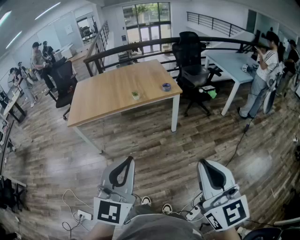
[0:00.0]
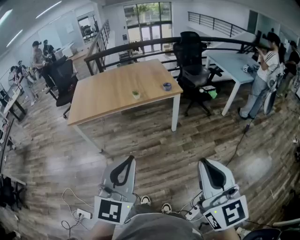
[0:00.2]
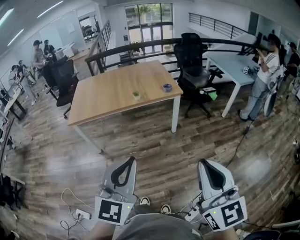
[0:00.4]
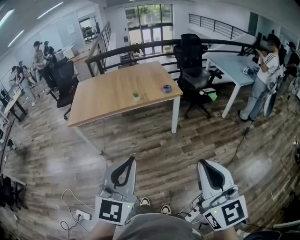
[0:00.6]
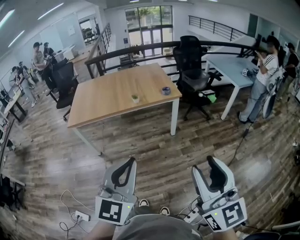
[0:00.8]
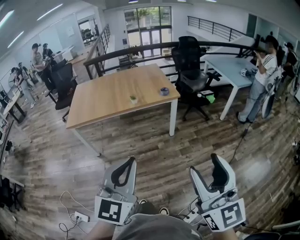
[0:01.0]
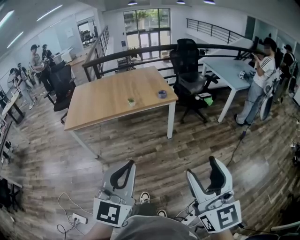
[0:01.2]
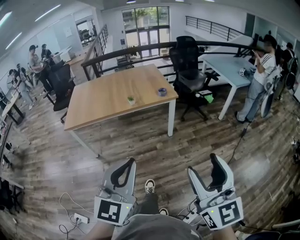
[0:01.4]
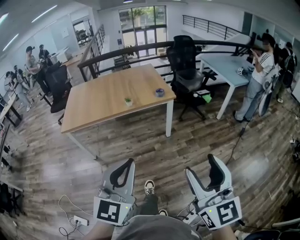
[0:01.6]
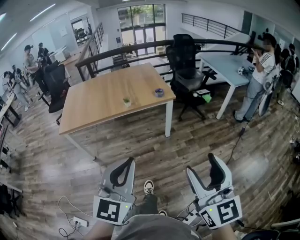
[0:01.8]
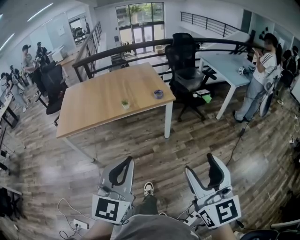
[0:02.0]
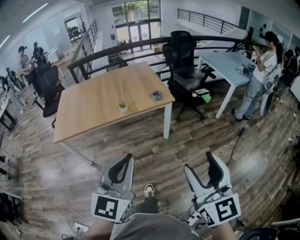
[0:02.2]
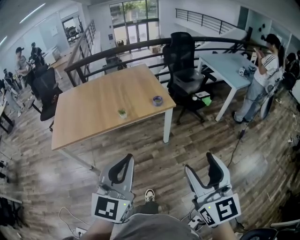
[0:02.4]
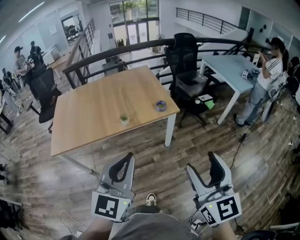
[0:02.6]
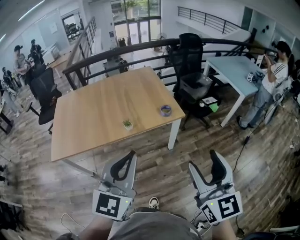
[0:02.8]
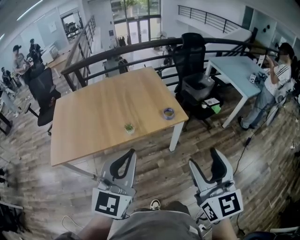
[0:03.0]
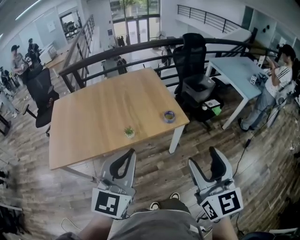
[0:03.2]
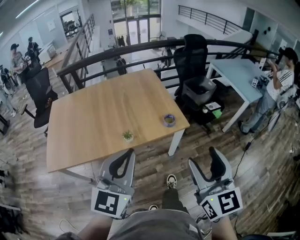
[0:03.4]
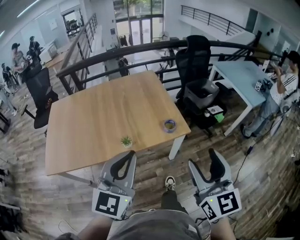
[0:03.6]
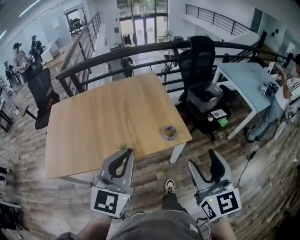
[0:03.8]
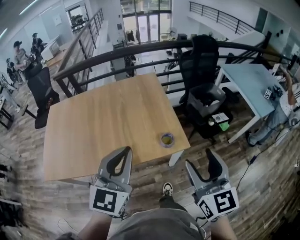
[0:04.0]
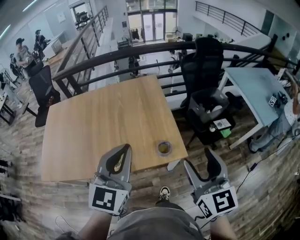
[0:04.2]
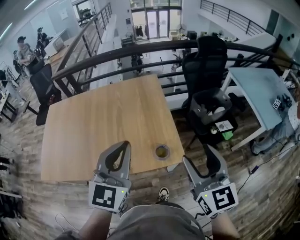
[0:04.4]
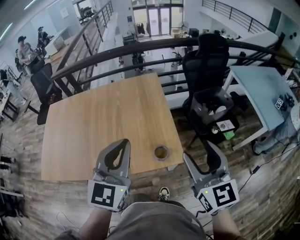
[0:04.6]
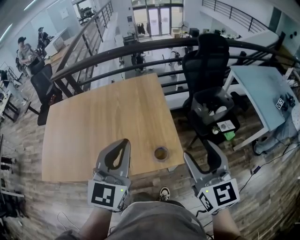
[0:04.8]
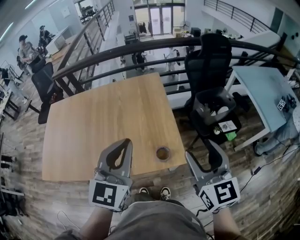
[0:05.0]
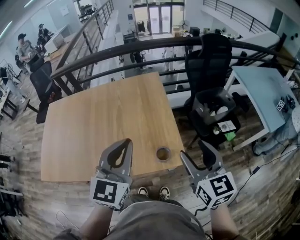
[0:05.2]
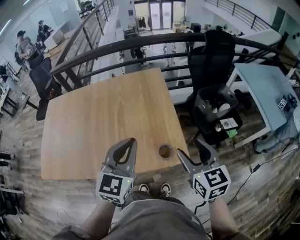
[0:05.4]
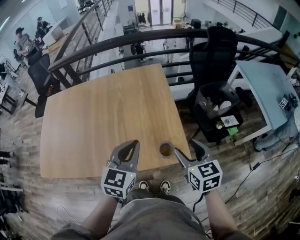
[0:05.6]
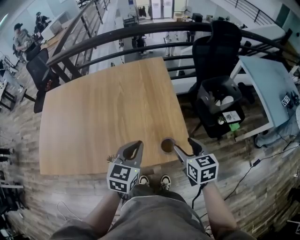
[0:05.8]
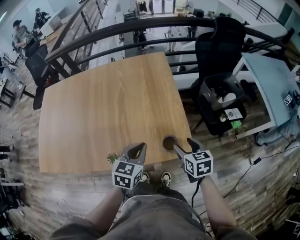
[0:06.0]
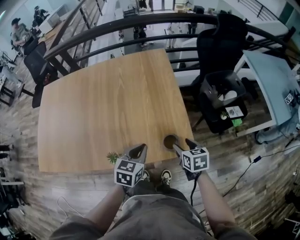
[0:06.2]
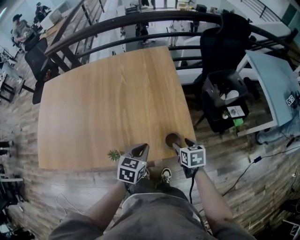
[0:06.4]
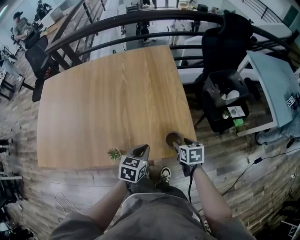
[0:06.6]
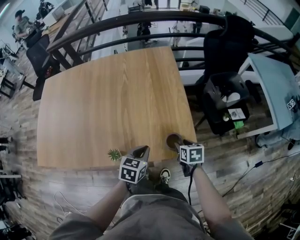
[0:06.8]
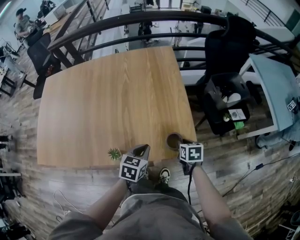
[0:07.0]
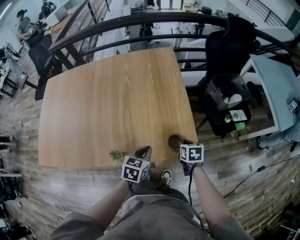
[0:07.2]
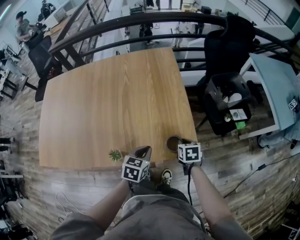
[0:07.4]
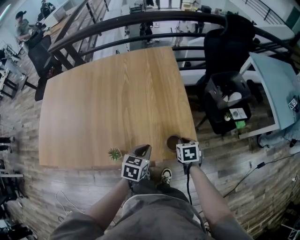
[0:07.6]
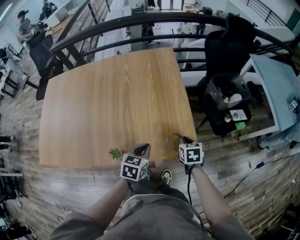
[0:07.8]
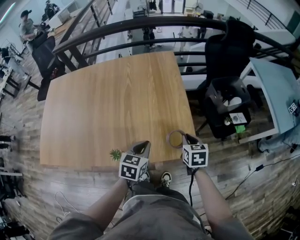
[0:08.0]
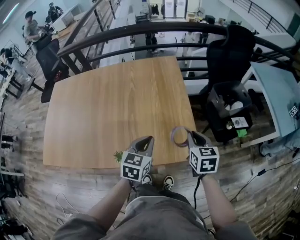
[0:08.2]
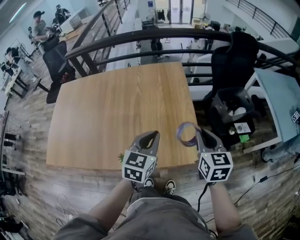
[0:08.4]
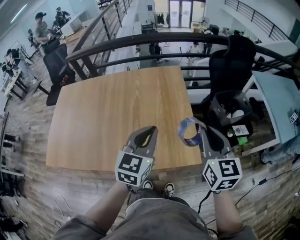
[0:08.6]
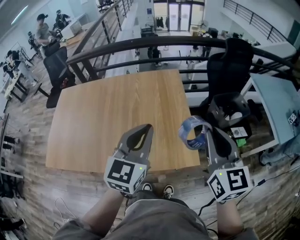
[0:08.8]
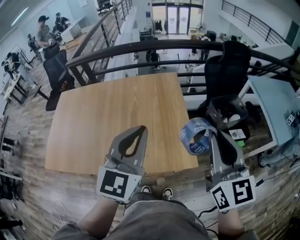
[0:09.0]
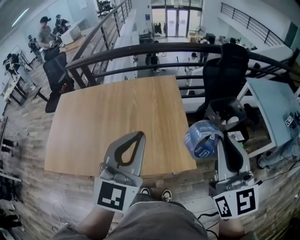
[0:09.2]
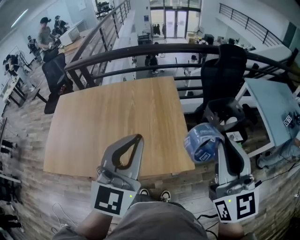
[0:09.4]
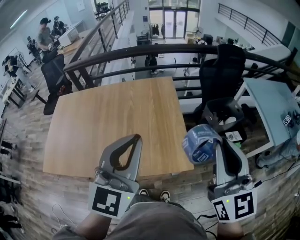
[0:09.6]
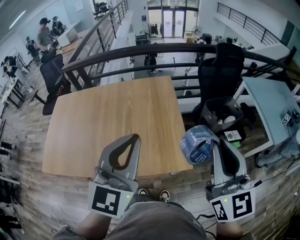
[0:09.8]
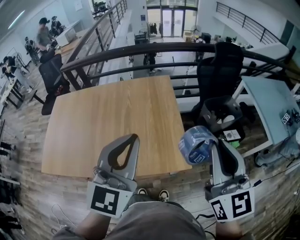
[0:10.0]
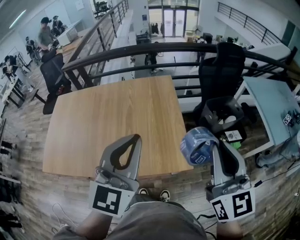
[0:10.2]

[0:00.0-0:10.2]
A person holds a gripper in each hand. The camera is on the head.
0:00.0 to 0:01.4: The right gripper opens.
0:01.4 to 0:03.0: The two grippers travel together, forward, approximately 40 cm.
0:03.0 to 0:04.4: The grippers both shift forward by approximately 40 cm.
0:04.4 to 0:05.8: The right gripper travels downward and forward by some 25 cm, and rotates roughly 30 degrees. The left gripper is displaced downward by roughly 20 cm, and swivels roughly 30 degrees.
0:05.8 to 0:07.2: The two grippers go about 15 cm downward. The right gripper changes its angle by about 30 degrees, and closes up; the left gripper changes its angle by some 20 degrees.
0:07.2 to 0:08.8: The two grippers go about 35 cm upward. The left gripper angles its fingers upward, by approximately 40 degrees, while the right gripper tips its fingers upward by roughly 50 degrees.
0:08.8 to 0:10.2: The right gripper moves upward and backward, about 10 cm. Meanwhile the left gripper is displaced upward by about 5 cm.

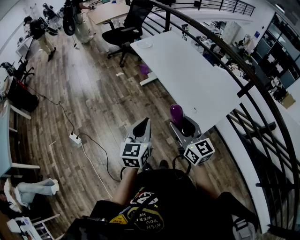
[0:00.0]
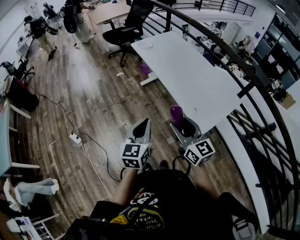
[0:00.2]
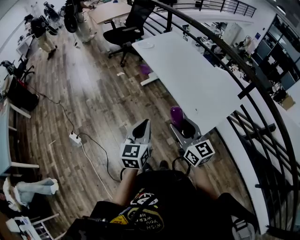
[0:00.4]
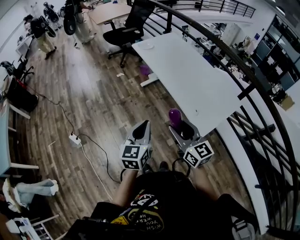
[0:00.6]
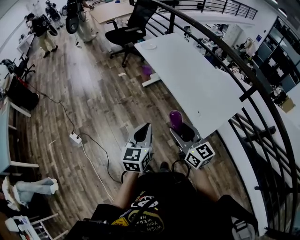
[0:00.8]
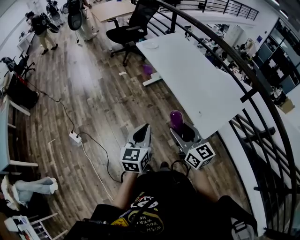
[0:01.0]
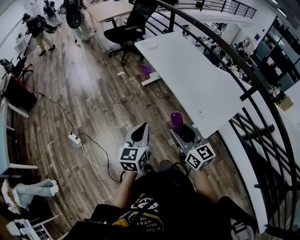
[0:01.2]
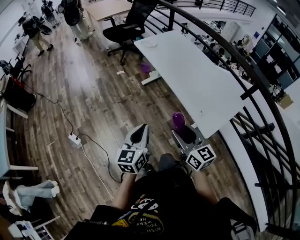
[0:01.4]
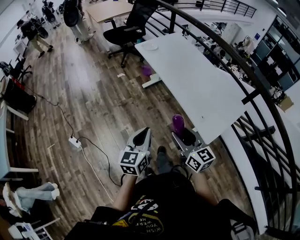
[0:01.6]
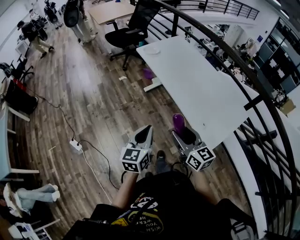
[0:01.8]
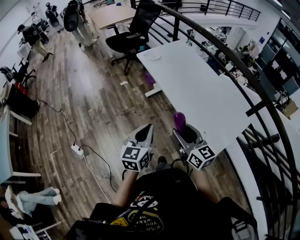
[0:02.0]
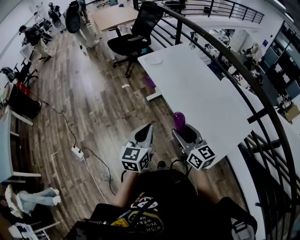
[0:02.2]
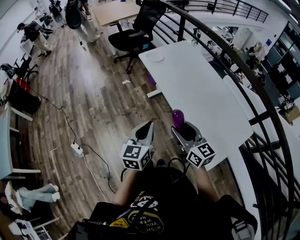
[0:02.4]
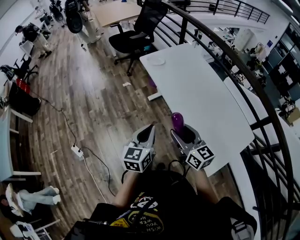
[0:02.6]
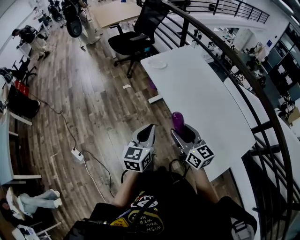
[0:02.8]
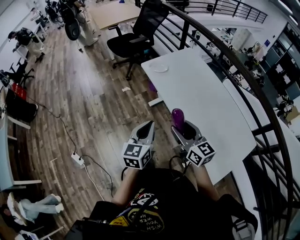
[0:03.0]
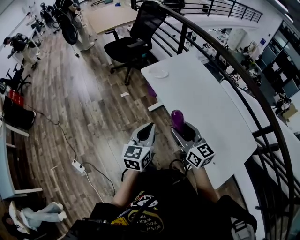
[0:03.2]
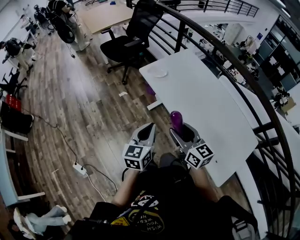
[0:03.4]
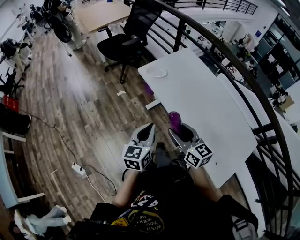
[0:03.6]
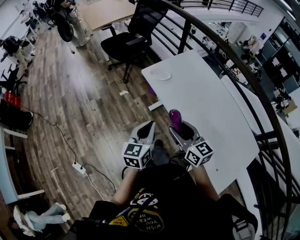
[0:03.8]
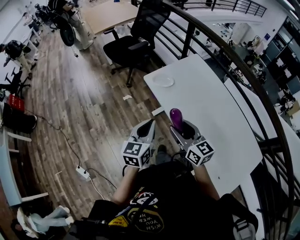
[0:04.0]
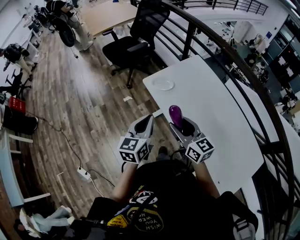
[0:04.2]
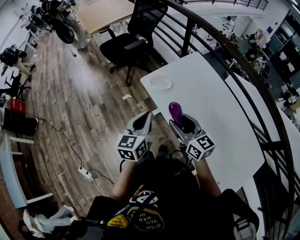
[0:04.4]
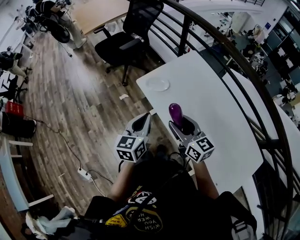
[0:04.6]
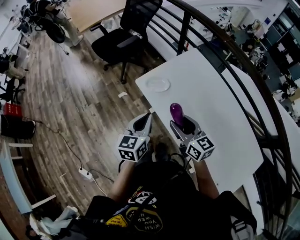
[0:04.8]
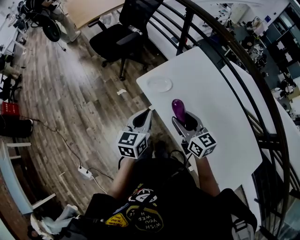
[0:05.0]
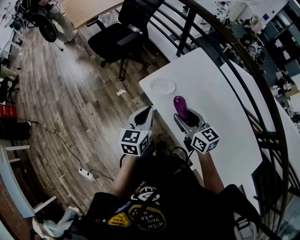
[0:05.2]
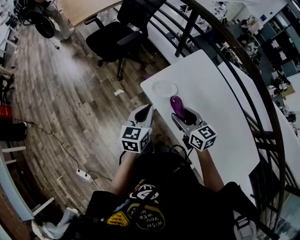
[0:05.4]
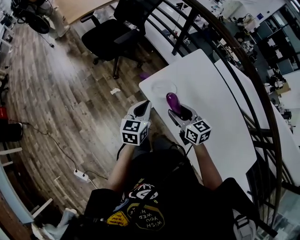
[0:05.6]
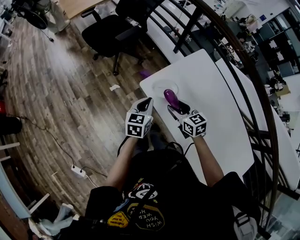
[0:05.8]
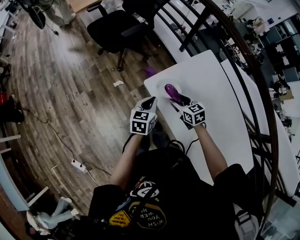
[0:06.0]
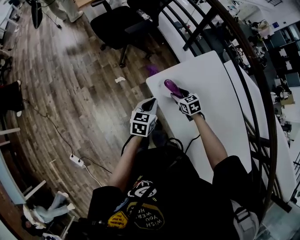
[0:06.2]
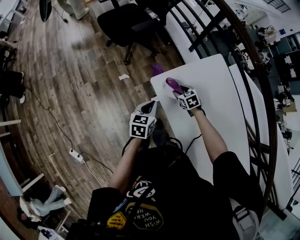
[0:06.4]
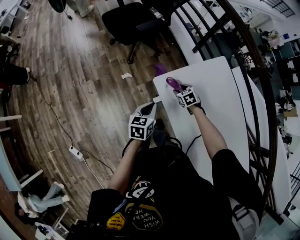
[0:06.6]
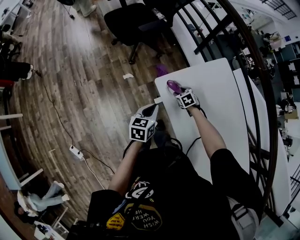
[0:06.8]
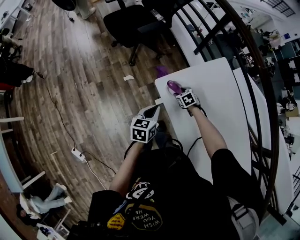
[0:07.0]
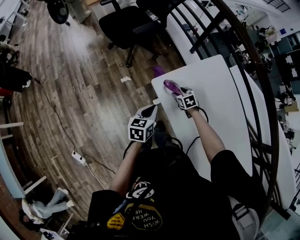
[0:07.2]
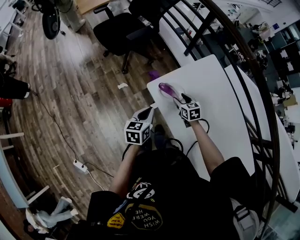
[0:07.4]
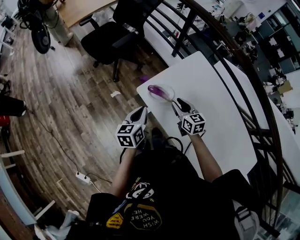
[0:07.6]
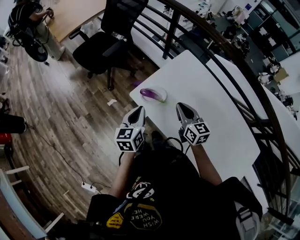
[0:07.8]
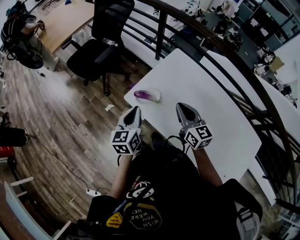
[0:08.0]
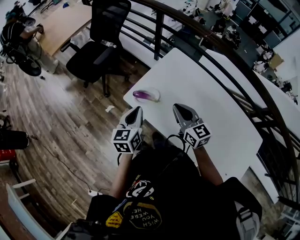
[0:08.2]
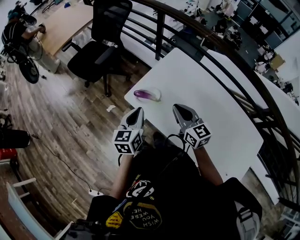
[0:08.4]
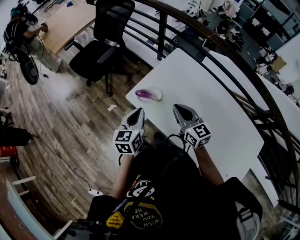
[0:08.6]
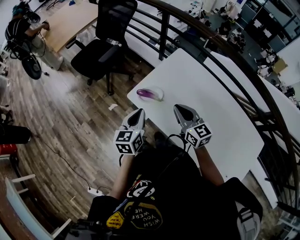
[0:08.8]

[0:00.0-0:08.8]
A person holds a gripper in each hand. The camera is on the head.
0:00.0 to 0:01.4: Both grippers move to the left, some 5 cm.
0:01.4 to 0:03.0: Both grippers move forward, some 35 cm.
0:03.0 to 0:04.4: The grippers both shift forward by some 30 cm.
0:04.4 to 0:05.8: Both grippers move forward and downward, about 30 cm. The right gripper changes its angle by some 30 degrees.
0:05.8 to 0:07.4: The right gripper goes about 15 cm downward and forward.
0:07.4 to 0:08.8: The right gripper travels upward and backward by about 25 cm, angles its fingers upward, by approximately 30 degrees, and closes its fingers; the left gripper travels upward and to the right by approximately 10 cm.

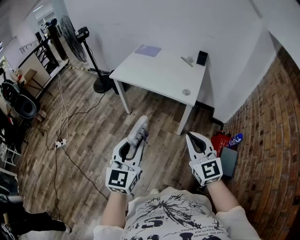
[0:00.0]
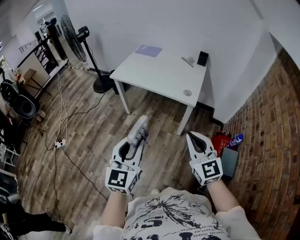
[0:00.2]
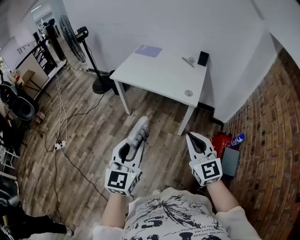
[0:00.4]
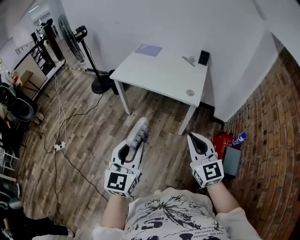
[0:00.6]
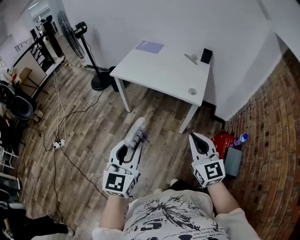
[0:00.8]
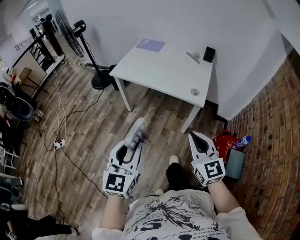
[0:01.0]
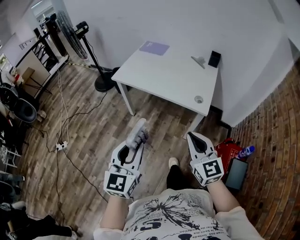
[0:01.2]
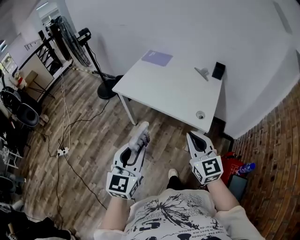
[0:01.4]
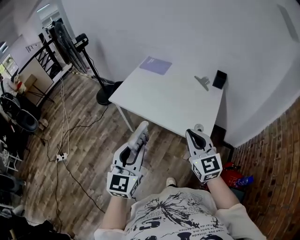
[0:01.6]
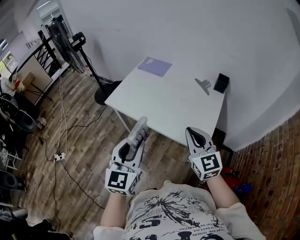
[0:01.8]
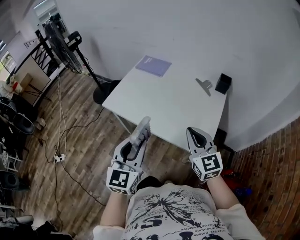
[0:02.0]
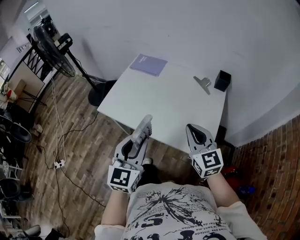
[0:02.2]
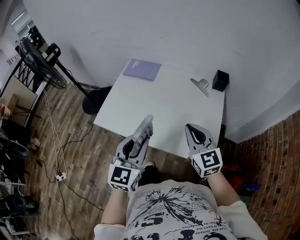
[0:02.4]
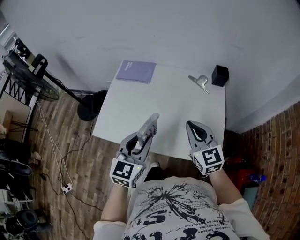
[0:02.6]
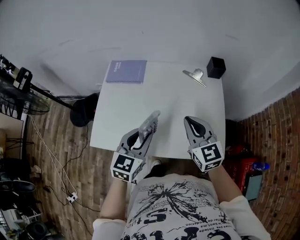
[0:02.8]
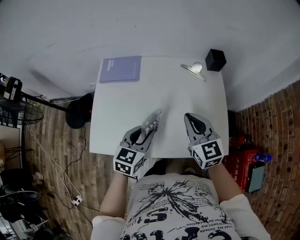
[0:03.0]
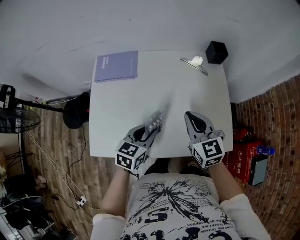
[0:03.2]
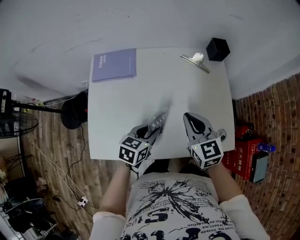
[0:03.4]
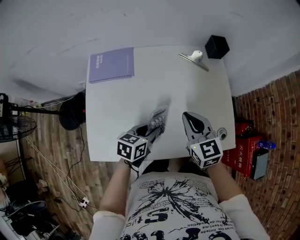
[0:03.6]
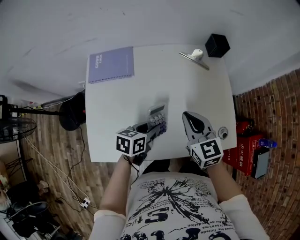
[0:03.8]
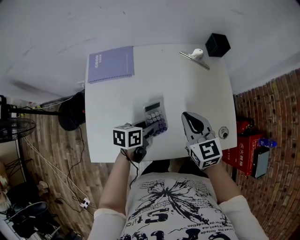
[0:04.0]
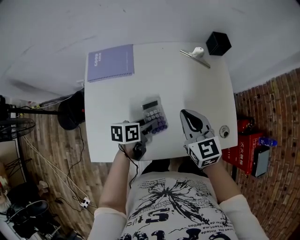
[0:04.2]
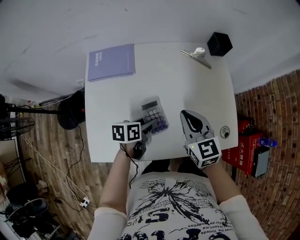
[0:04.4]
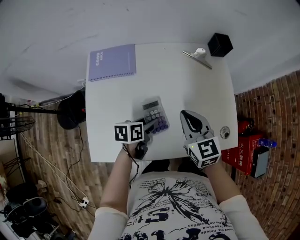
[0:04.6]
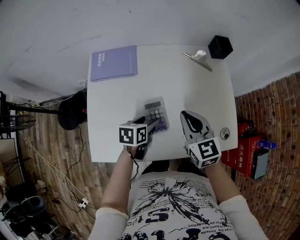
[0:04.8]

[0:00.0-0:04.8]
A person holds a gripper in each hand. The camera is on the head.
0:00.0 to 0:01.6: The grippers both shift forward by about 35 cm.
0:01.6 to 0:03.2: The right gripper ends up some 40 cm from where it was, and changes its angle by approximately 30 degrees; the left gripper ends up roughly 50 cm from where it was, and rotates about 60 degrees.
0:03.2 to 0:04.8: The left gripper goes roughly 10 cm downward, turns by roughly 30 degrees, and opens its fingers; the right gripper goes some 5 cm to the left.
